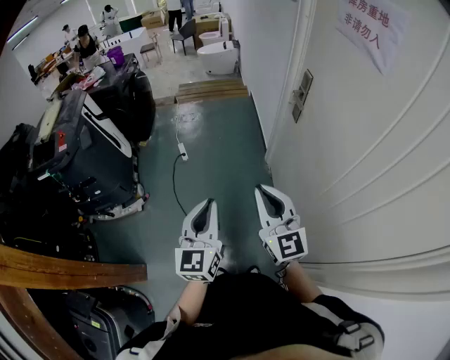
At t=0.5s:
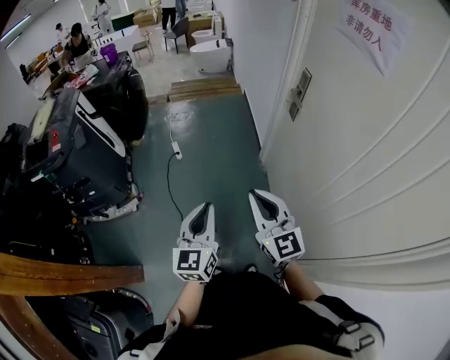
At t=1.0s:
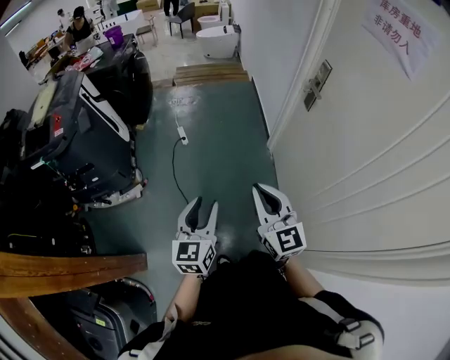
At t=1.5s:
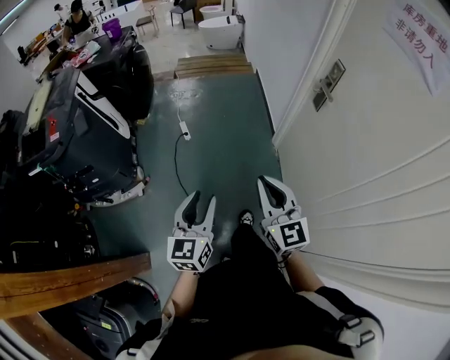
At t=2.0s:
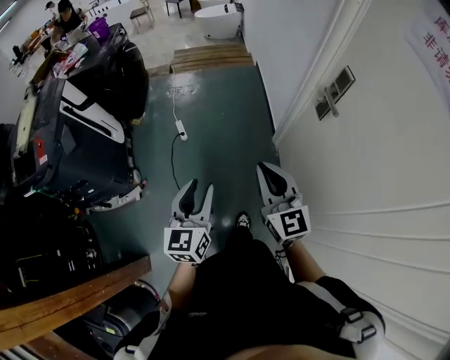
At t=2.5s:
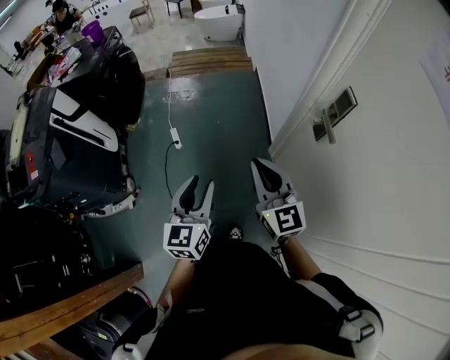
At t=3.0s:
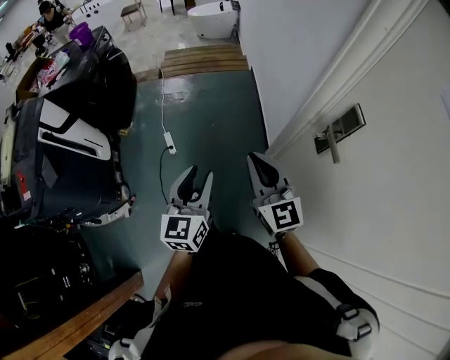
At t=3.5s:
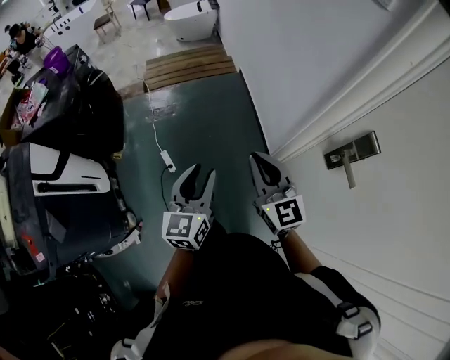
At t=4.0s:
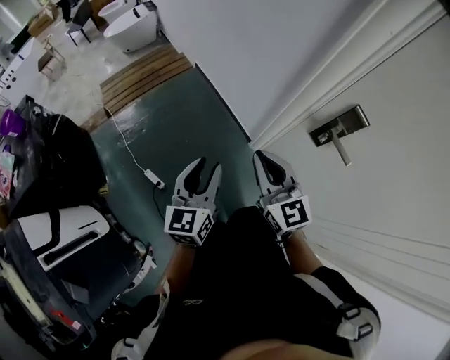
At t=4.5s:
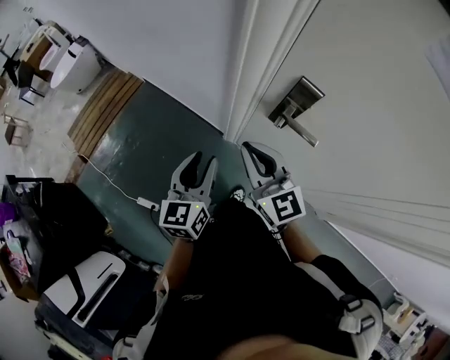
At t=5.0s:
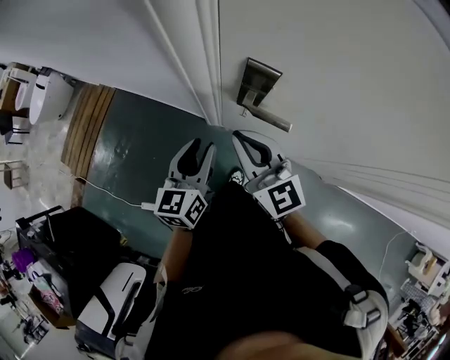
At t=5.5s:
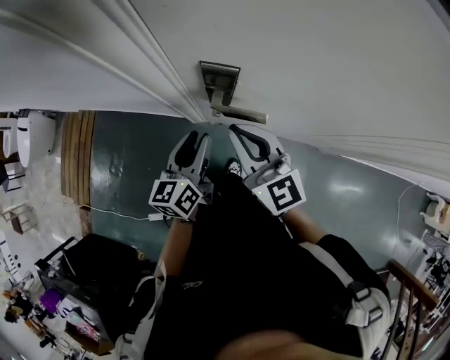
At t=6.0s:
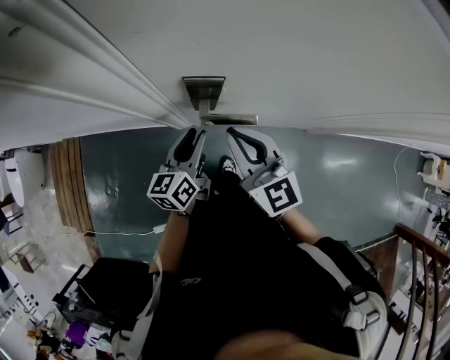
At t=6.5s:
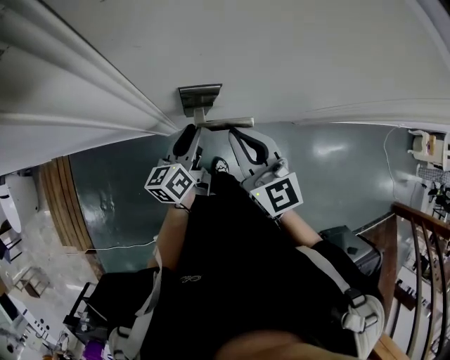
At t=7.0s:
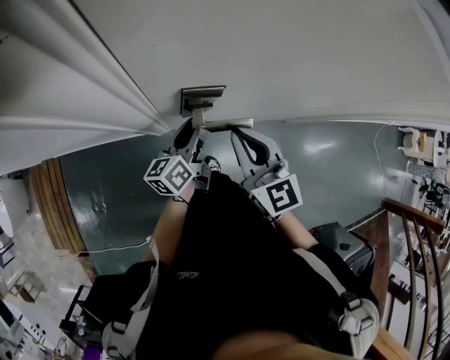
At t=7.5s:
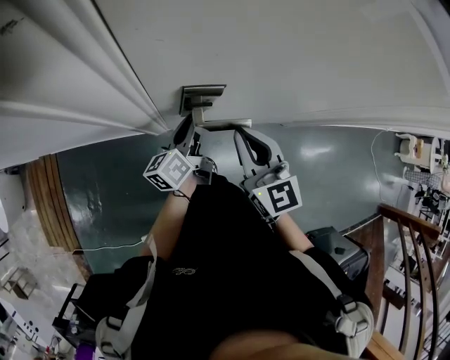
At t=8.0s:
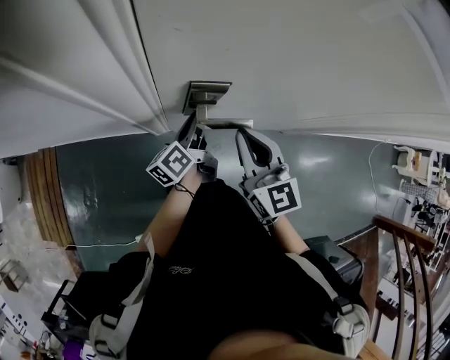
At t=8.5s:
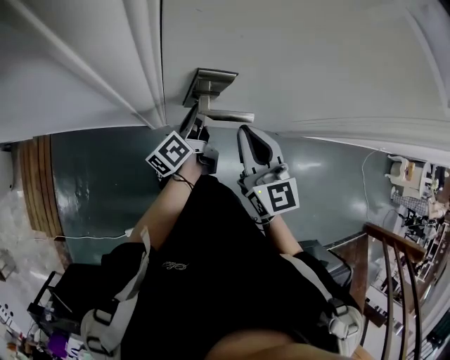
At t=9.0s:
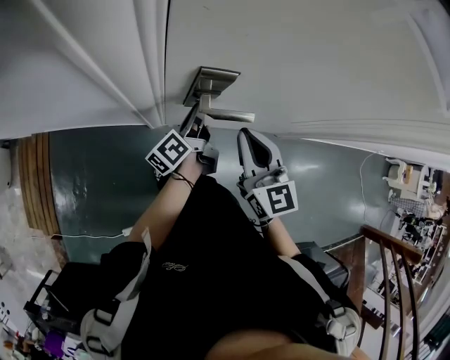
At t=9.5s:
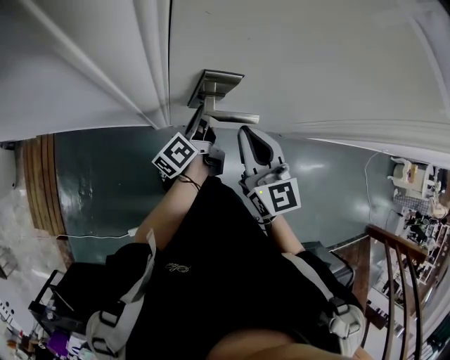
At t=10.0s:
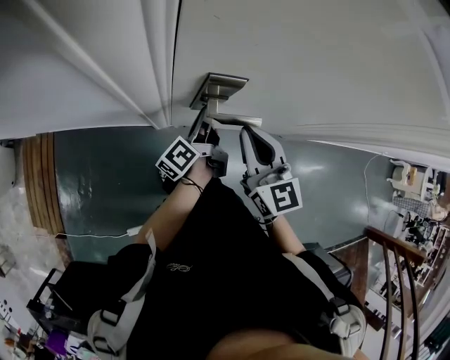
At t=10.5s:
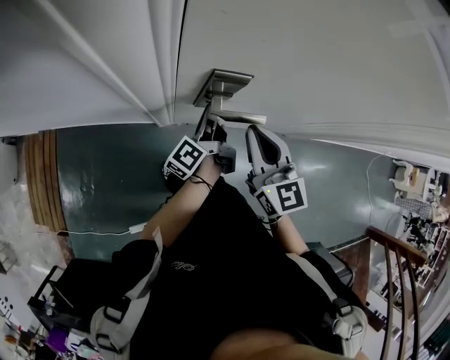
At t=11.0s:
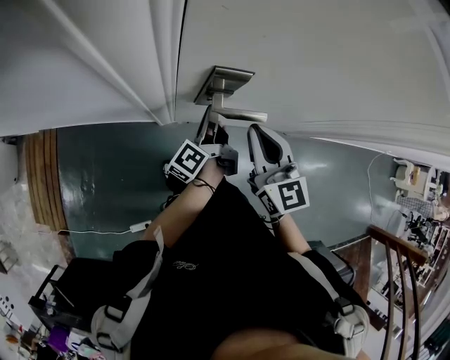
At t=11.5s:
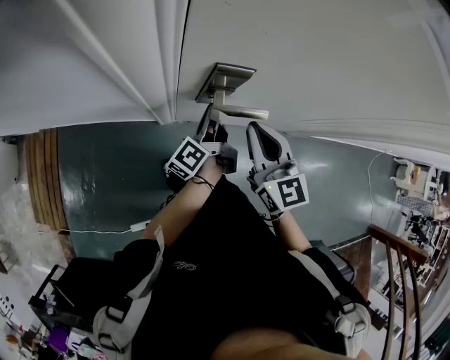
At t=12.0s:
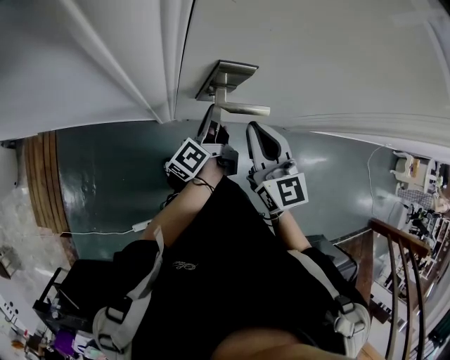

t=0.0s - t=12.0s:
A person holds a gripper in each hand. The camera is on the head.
t=0.0s - t=2.0s: Both grippers travel together forward, about 20 cm. The left gripper opens.
t=2.0s - t=4.0s: The left gripper changes place by roughly 50 cm, and swivels approximately 30 degrees, while the right gripper shifts by roughly 40 cm, and turns by roughly 30 degrees.
t=4.0s - t=6.0s: The right gripper shifts by roughly 30 cm, and turns by approximately 50 degrees; the left gripper ends up about 40 cm from where it was, and swivels roughly 60 degrees.
t=6.0s - t=8.0s: The left gripper travels forward by approximately 5 cm, and rotates some 30 degrees.
t=8.0s - t=10.0s: The grippers make only small movements.
t=10.0s - t=12.0s: There are only small adjustments of the grippers.

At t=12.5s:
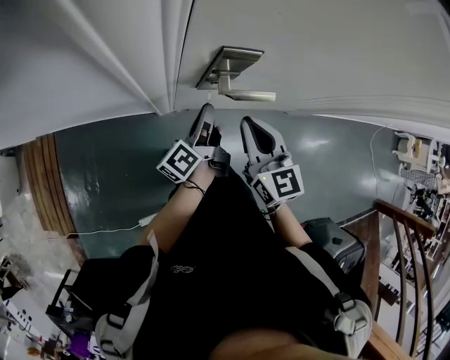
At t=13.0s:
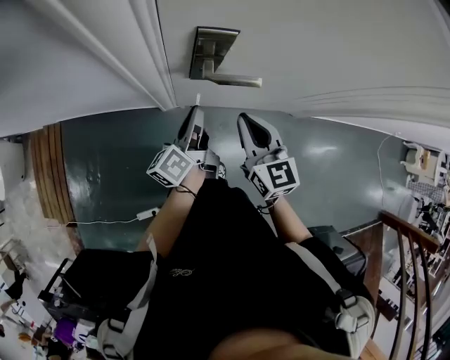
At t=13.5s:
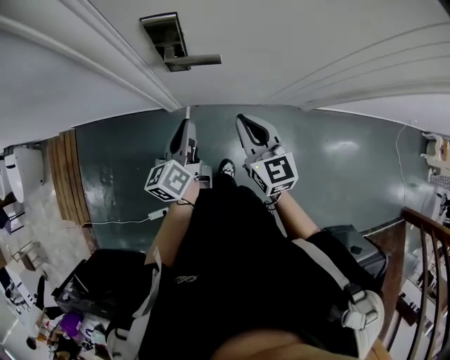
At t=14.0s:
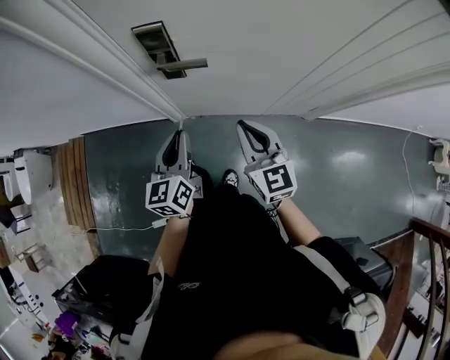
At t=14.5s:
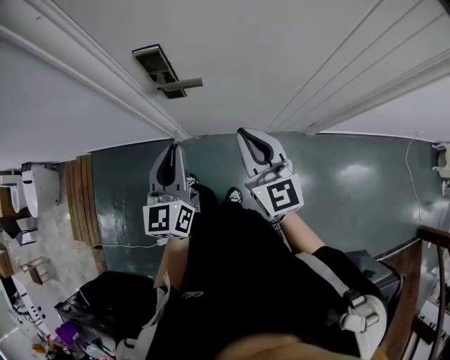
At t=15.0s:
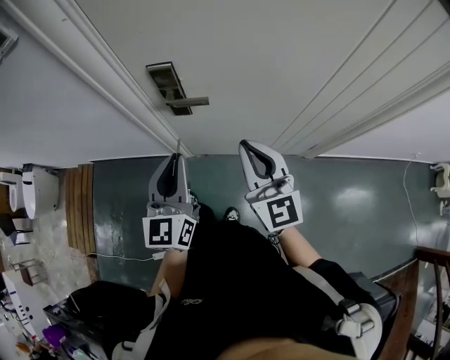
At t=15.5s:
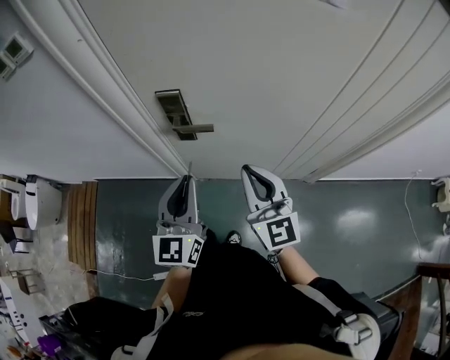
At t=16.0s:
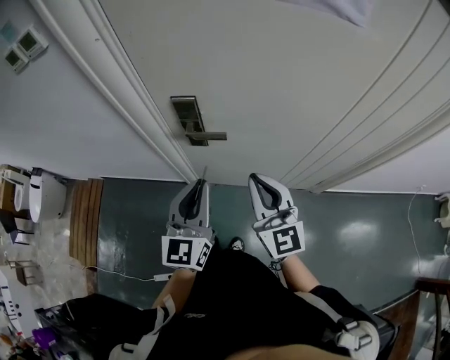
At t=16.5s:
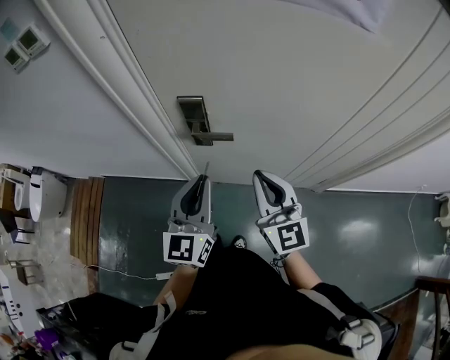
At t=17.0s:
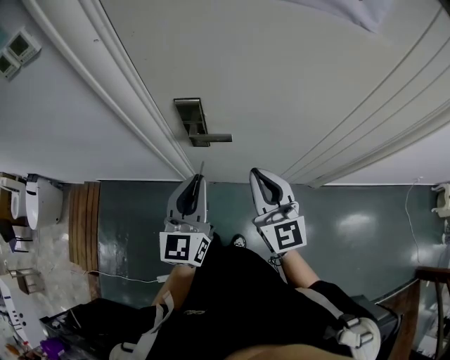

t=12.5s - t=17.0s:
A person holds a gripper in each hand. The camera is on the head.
t=12.5s - t=14.5s: The left gripper is displaced backward and upward by roughly 25 cm, and twists some 70 degrees clockwise, seen from behind, while the right gripper is displaced to the right, backward and upward by approximately 20 cm.
t=14.5s - t=17.0s: The left gripper is displaced upward by approximately 5 cm. Meanwhile the right gripper shifts by some 5 cm.

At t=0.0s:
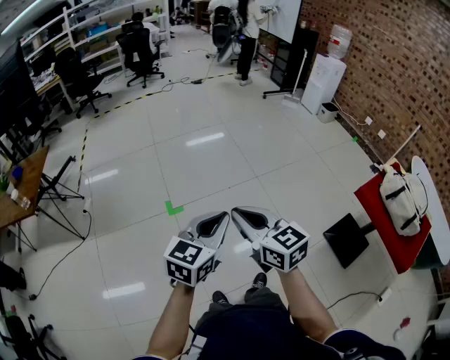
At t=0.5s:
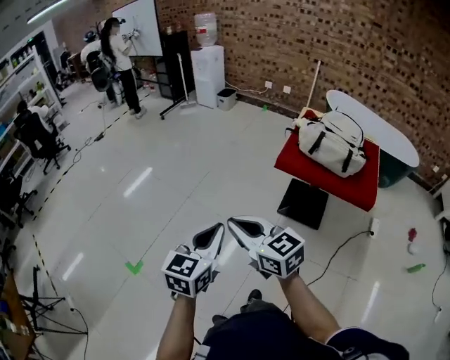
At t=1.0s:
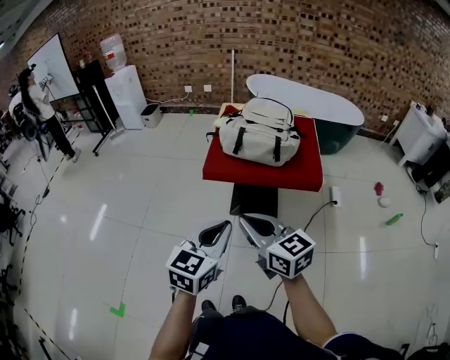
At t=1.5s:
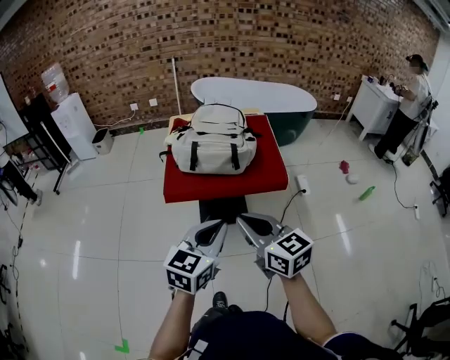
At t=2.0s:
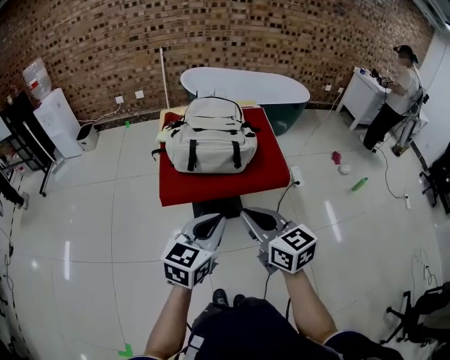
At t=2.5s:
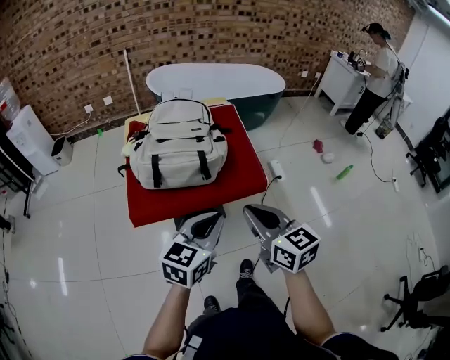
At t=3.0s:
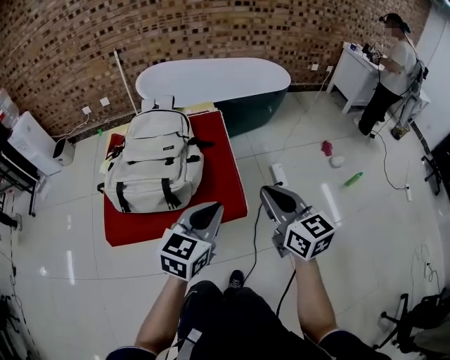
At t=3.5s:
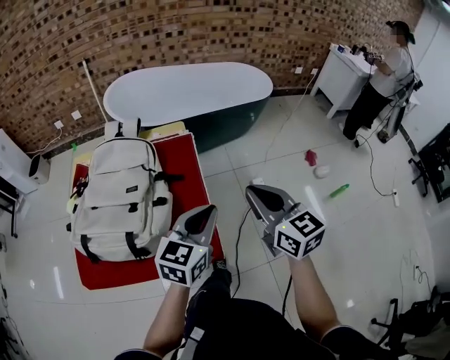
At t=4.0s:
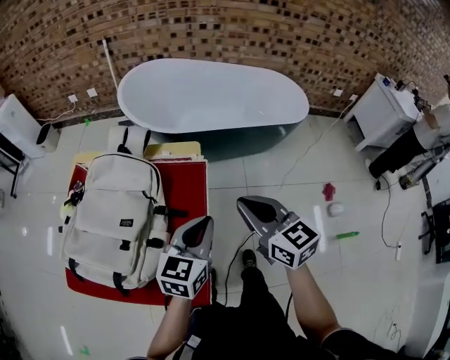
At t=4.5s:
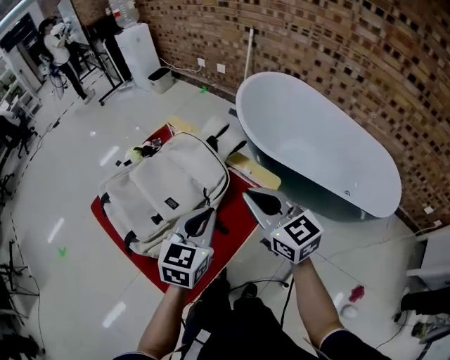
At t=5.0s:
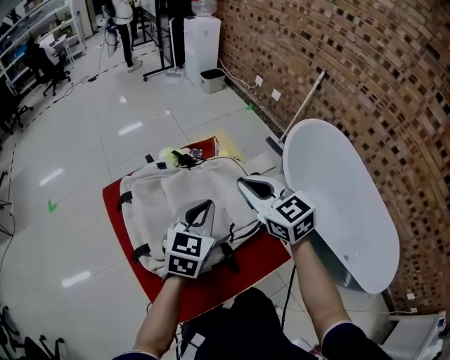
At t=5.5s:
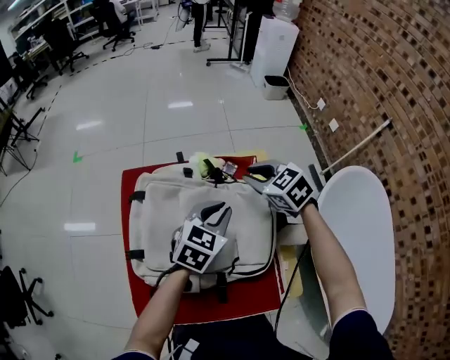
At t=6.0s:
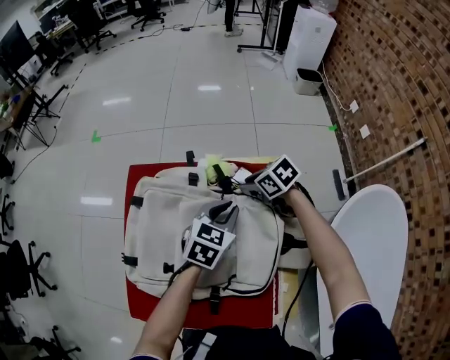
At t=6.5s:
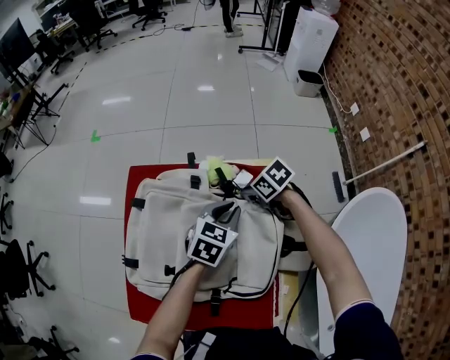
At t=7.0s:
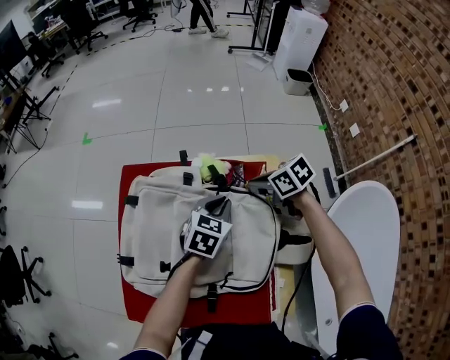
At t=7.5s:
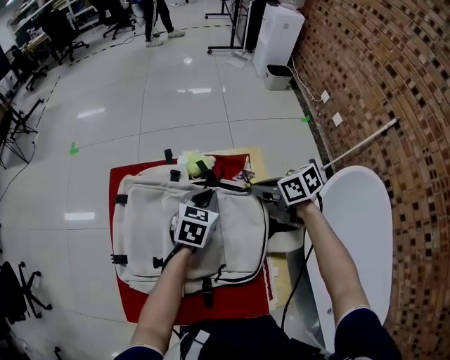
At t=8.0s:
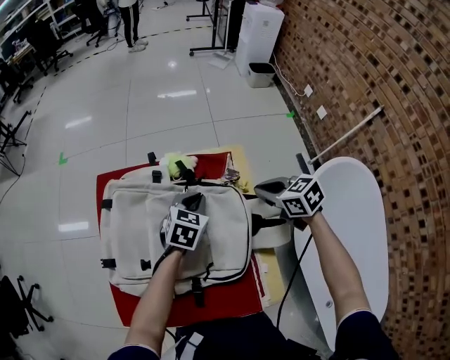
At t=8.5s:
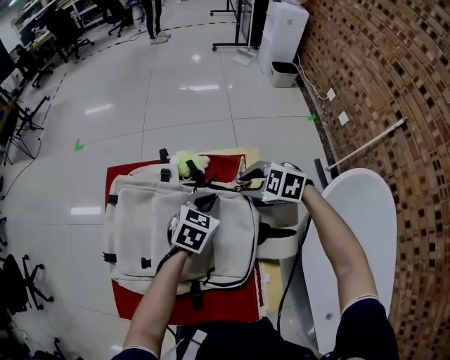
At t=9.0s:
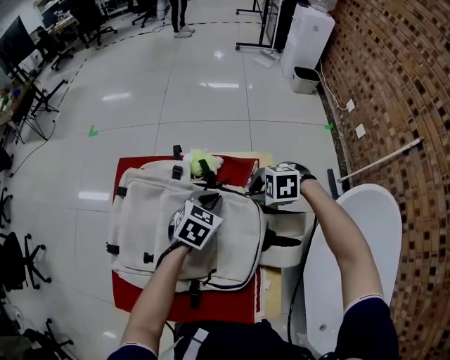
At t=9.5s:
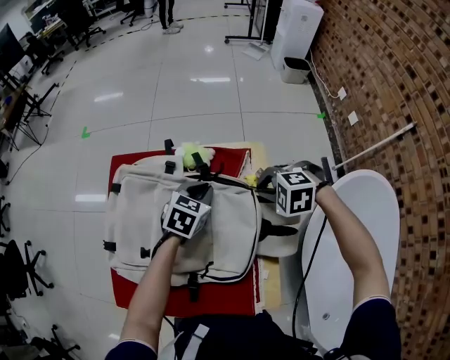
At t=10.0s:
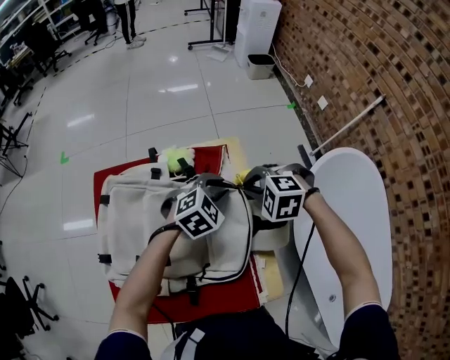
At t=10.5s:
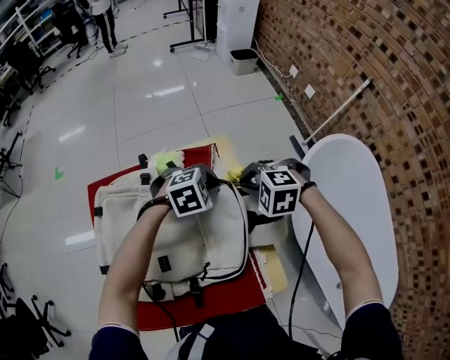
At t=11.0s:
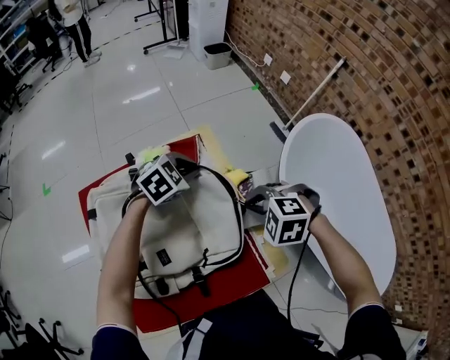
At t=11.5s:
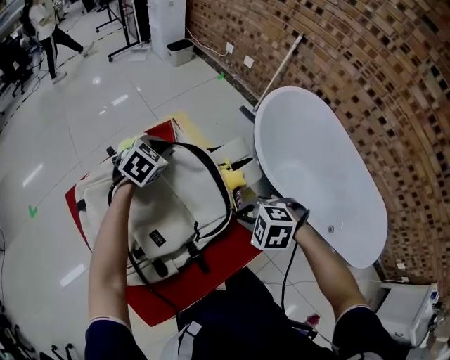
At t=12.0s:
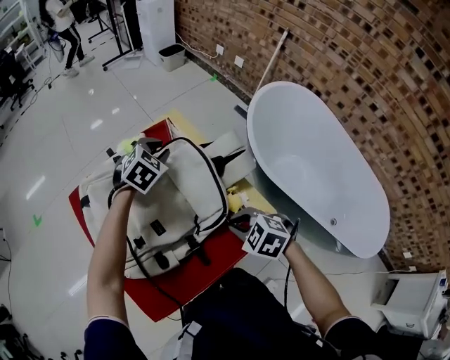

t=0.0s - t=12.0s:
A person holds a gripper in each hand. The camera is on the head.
t=0.0s - t=2.0s: Both grippers are carried some 60 cm. The left gripper changes its angle by some 70 degrees; the right gripper turns by about 70 degrees.
t=2.0s - t=4.0s: The pair of grippers is taken forward and to the right, about 60 cm.
t=4.0s - t=6.0s: The pair of grippers is taken approximately 50 cm. The left gripper changes its angle by roughly 80 degrees; the right gripper tilts its fingers approximately 30 degrees downward, and opens its fingers.
t=6.0s - t=8.0s: The right gripper is displaced backward, to the right and upward by about 20 cm, and closes its fingers.
t=8.0s - t=10.0s: The right gripper twists about 50 degrees counterclockwise, seen from behind, and opens, then closes once more. The left gripper changes place by some 10 cm, changes its angle by some 40 degrees, and opens.
t=10.0s - t=12.0s: The right gripper ends up roughly 30 cm from where it was, and rolls clockwise, seen from behind, by roughly 50 degrees. Meanwhile the left gripper moves roughly 5 cm.
